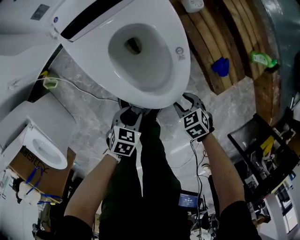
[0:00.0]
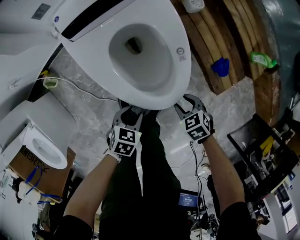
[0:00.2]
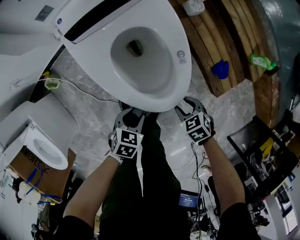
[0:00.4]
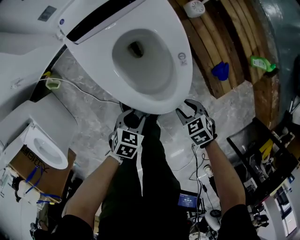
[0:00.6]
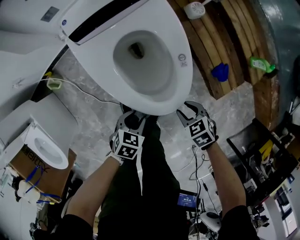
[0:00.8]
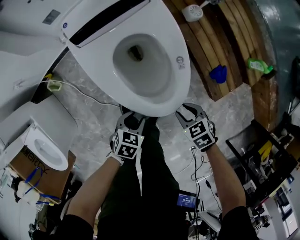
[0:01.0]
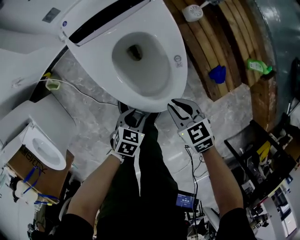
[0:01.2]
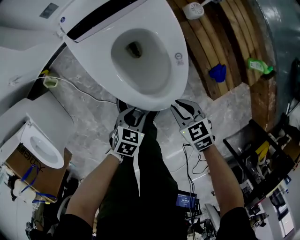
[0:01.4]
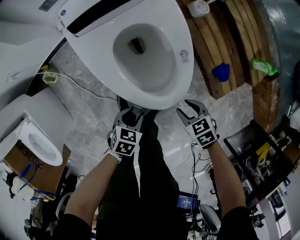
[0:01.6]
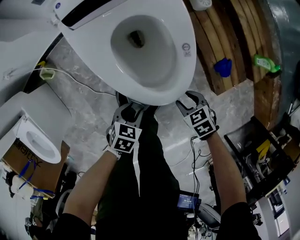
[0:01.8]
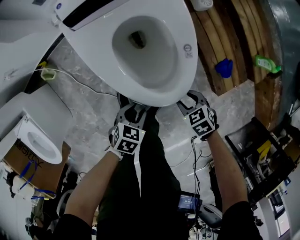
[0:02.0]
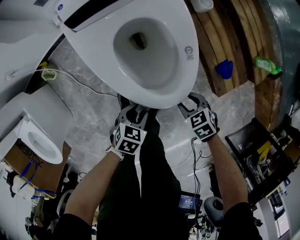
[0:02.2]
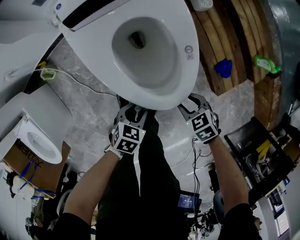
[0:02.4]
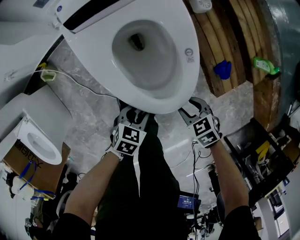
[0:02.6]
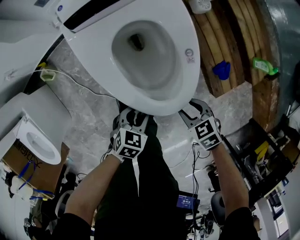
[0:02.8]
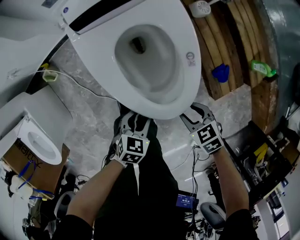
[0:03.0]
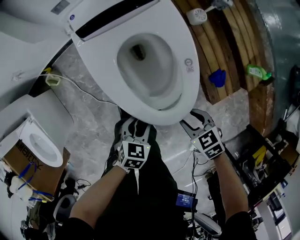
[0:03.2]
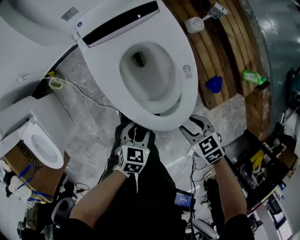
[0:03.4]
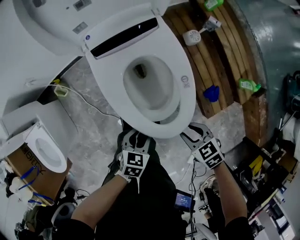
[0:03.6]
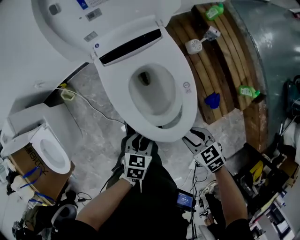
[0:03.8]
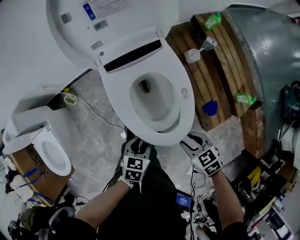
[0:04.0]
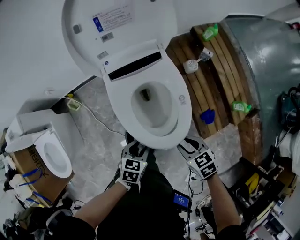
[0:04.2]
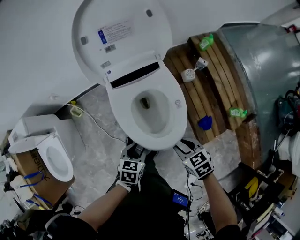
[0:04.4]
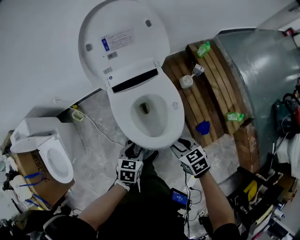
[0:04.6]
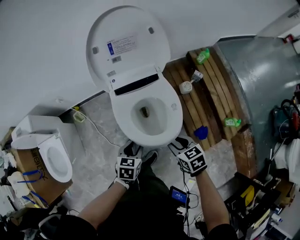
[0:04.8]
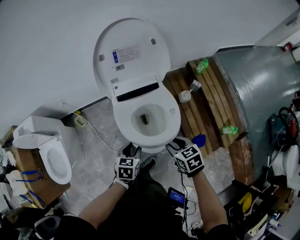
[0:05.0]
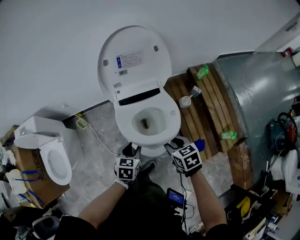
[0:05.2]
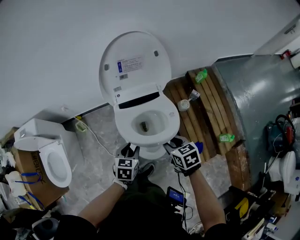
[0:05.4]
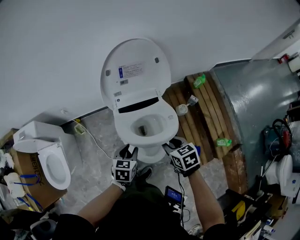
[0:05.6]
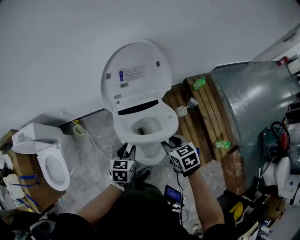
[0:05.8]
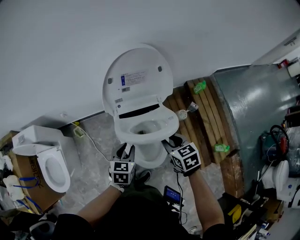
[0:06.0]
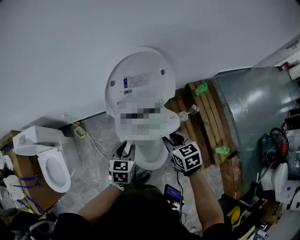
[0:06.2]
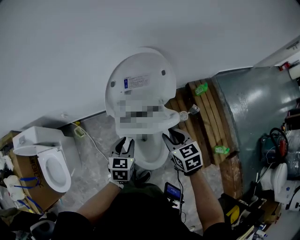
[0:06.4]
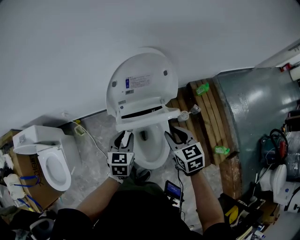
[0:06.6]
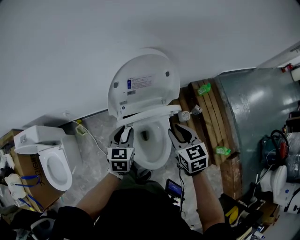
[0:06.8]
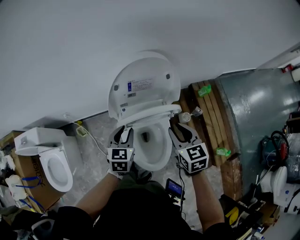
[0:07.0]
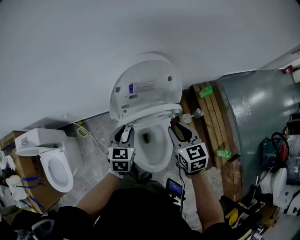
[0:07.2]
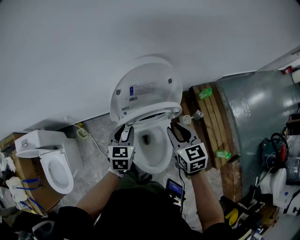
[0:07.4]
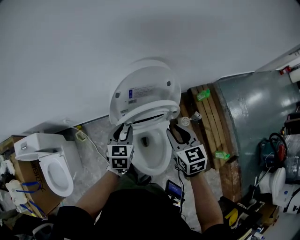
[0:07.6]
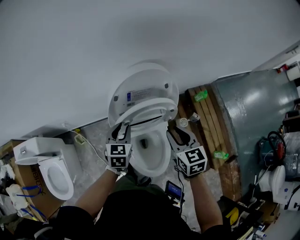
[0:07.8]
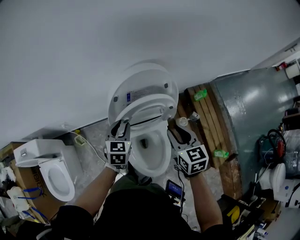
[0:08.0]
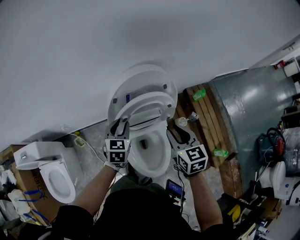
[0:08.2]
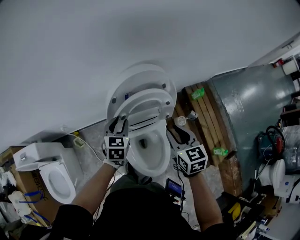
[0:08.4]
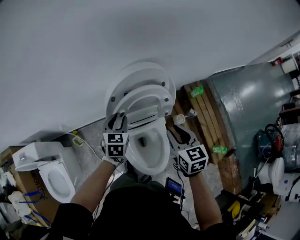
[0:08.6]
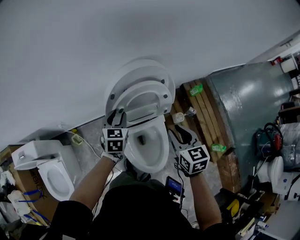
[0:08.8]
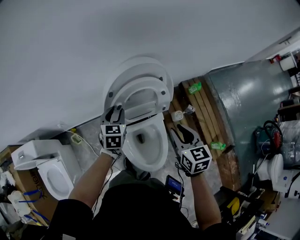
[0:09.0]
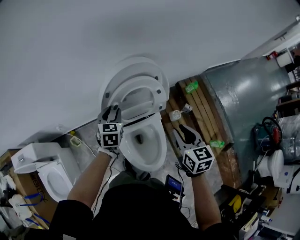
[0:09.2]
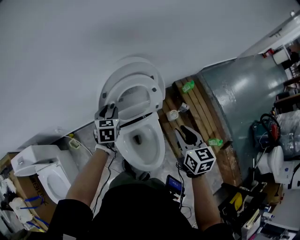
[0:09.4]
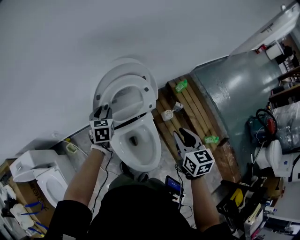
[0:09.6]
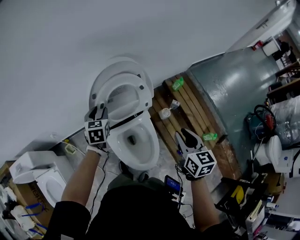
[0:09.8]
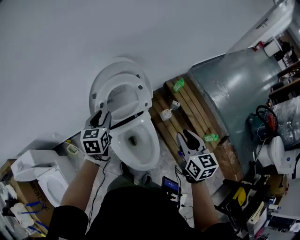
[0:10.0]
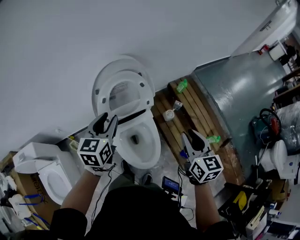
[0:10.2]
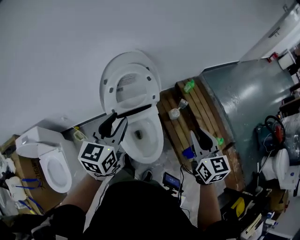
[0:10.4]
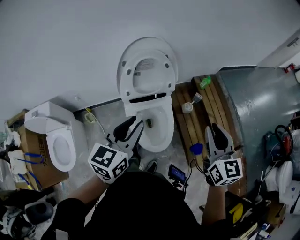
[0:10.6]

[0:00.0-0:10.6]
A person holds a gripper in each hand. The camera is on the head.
0:00.0 to 0:01.6: The right gripper reaches roughly 10 cm upward, then returns, and closes and opens again.
0:01.6 to 0:03.0: The left gripper ends up approximately 5 cm from where it was.
0:03.0 to 0:04.6: Both grippers move upward, about 25 cm. The left gripper changes its angle by about 20 degrees.
0:04.6 to 0:06.0: The grippers both shift forward and upward by approximately 20 cm.
0:06.0 to 0:07.6: The right gripper moves forward and upward, roughly 15 cm. The left gripper is displaced forward by some 15 cm.
0:07.6 to 0:09.0: The left gripper travels forward by roughly 5 cm.
0:09.0 to 0:10.6: Both grippers travel together backward, upward and to the right, roughly 35 cm. The right gripper swivels some 20 degrees; the left gripper changes its angle by approximately 30 degrees.

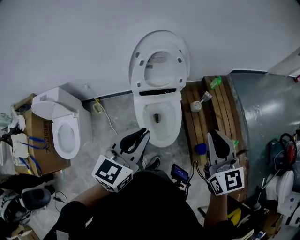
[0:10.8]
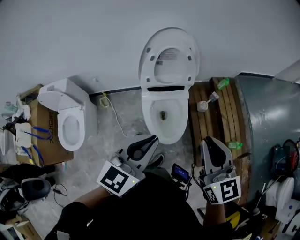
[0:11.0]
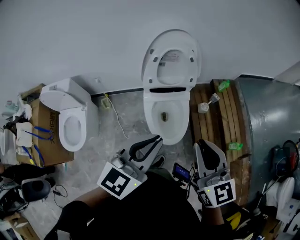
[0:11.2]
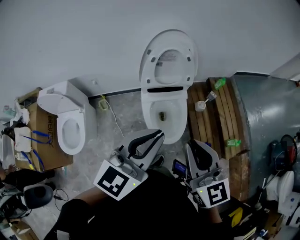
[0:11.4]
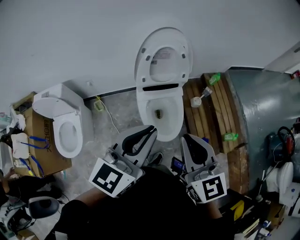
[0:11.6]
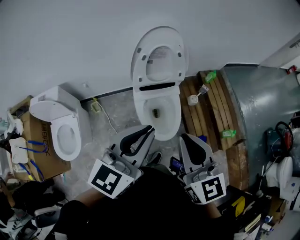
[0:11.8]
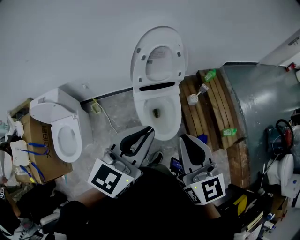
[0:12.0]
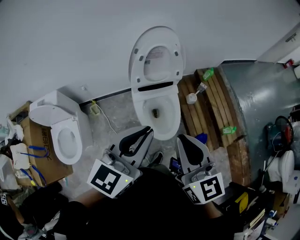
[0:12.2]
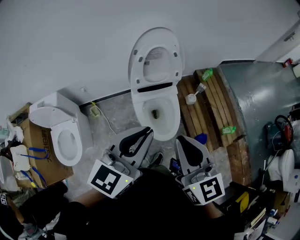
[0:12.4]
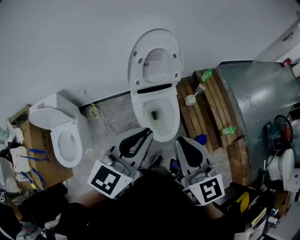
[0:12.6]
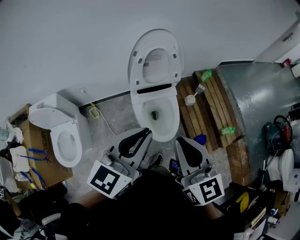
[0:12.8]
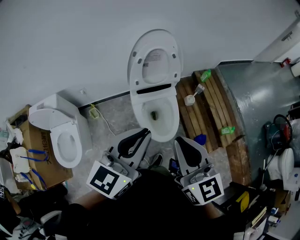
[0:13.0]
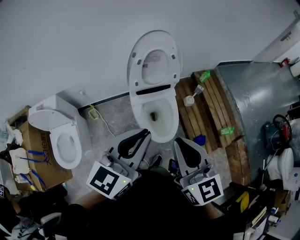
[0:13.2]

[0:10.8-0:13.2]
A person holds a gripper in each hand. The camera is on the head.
0:10.8 to 0:12.0: The left gripper travels upward by some 10 cm; the right gripper moves to the left and backward, about 20 cm.
0:12.0 to 0:13.2: There are only small adjustments of the grippers.

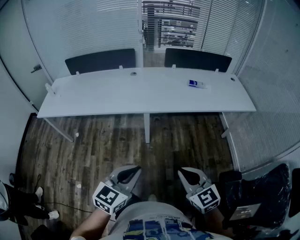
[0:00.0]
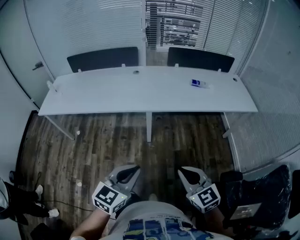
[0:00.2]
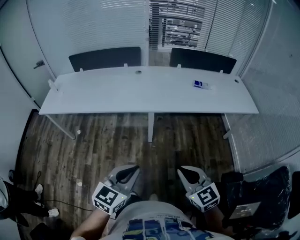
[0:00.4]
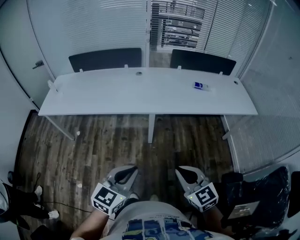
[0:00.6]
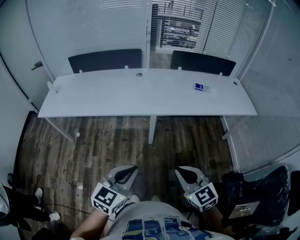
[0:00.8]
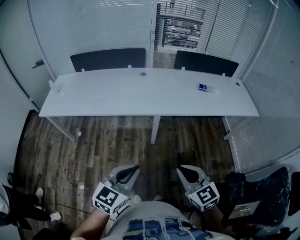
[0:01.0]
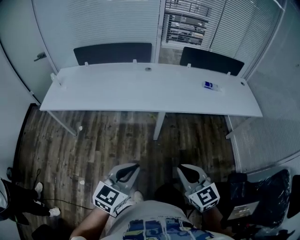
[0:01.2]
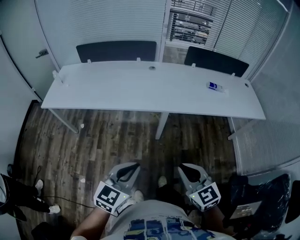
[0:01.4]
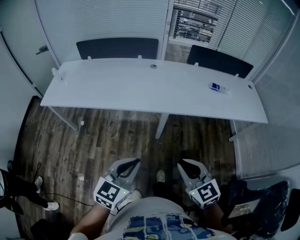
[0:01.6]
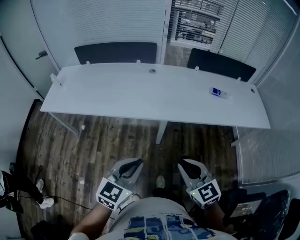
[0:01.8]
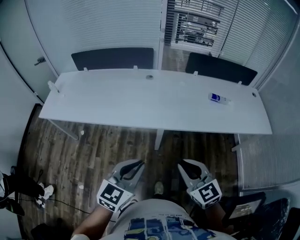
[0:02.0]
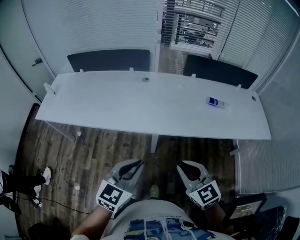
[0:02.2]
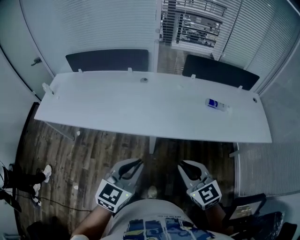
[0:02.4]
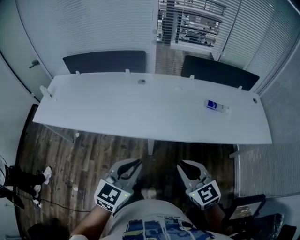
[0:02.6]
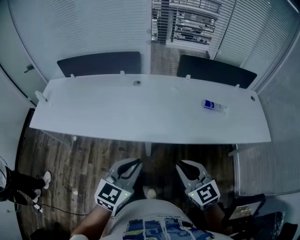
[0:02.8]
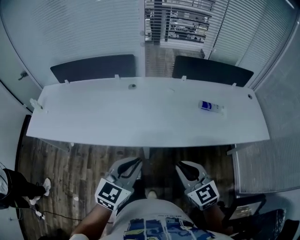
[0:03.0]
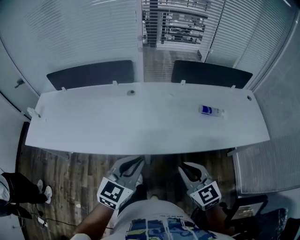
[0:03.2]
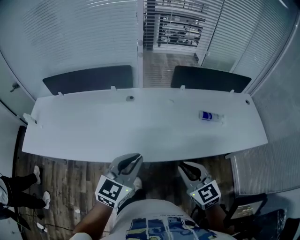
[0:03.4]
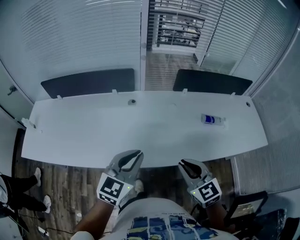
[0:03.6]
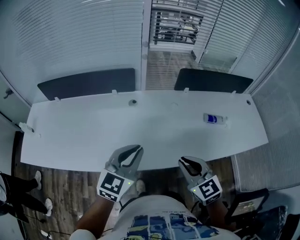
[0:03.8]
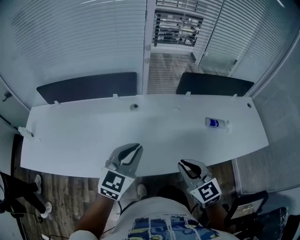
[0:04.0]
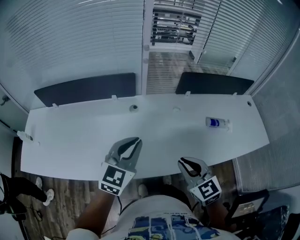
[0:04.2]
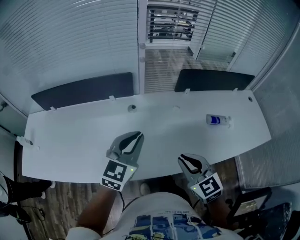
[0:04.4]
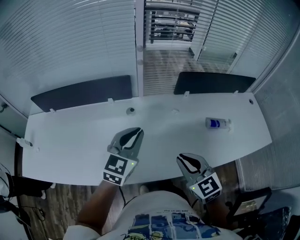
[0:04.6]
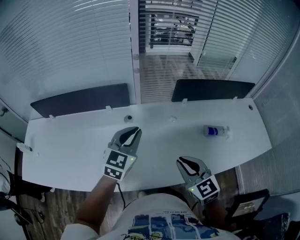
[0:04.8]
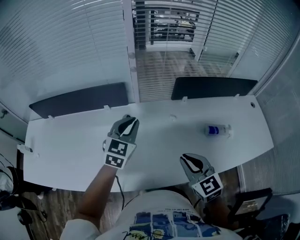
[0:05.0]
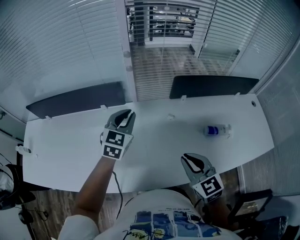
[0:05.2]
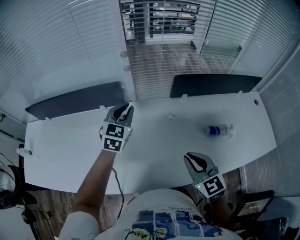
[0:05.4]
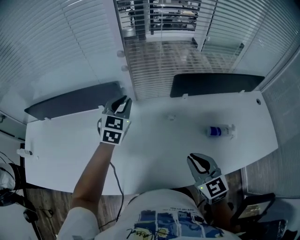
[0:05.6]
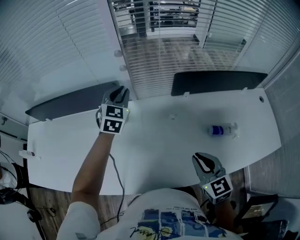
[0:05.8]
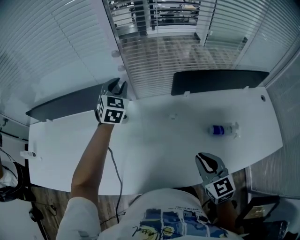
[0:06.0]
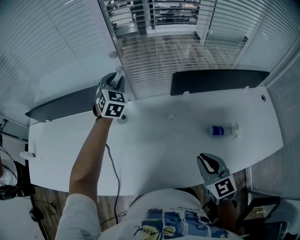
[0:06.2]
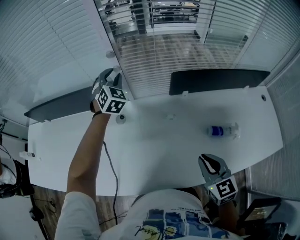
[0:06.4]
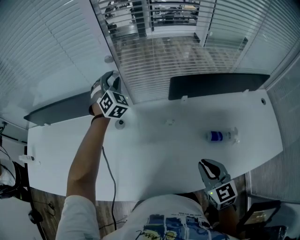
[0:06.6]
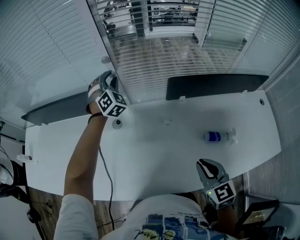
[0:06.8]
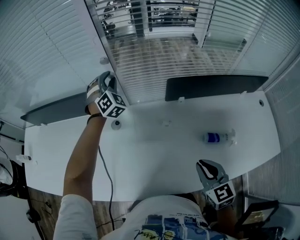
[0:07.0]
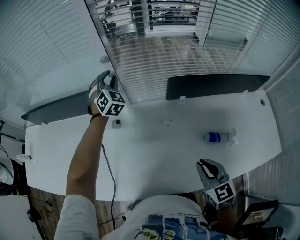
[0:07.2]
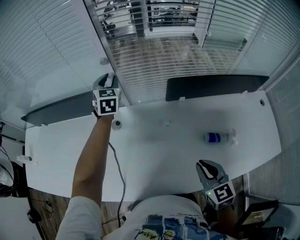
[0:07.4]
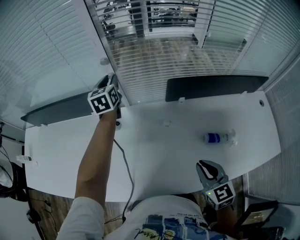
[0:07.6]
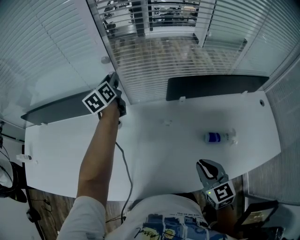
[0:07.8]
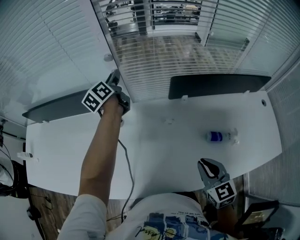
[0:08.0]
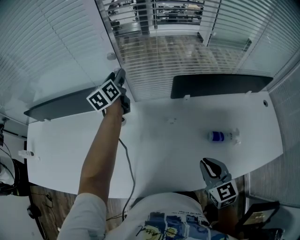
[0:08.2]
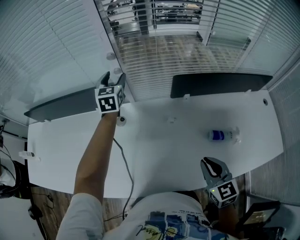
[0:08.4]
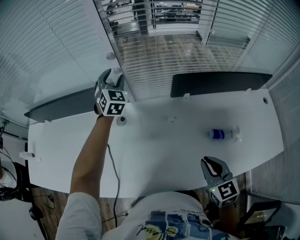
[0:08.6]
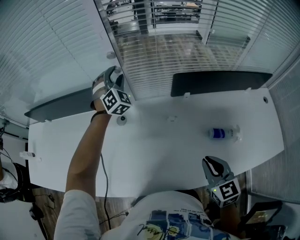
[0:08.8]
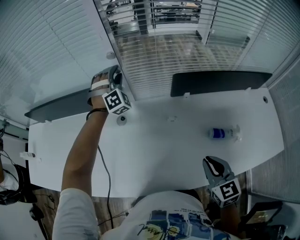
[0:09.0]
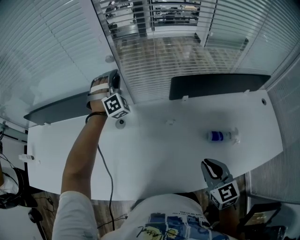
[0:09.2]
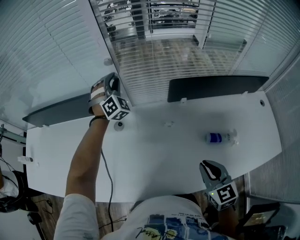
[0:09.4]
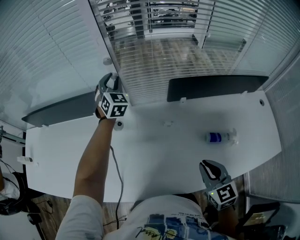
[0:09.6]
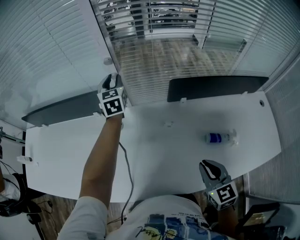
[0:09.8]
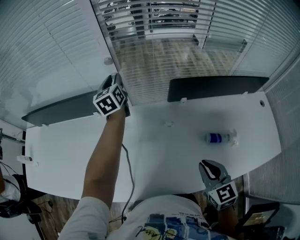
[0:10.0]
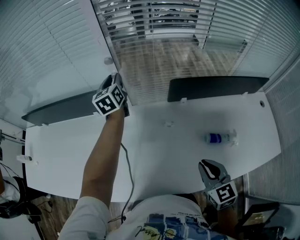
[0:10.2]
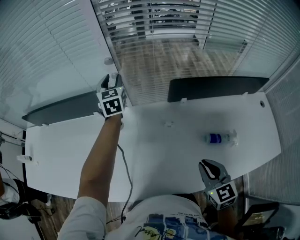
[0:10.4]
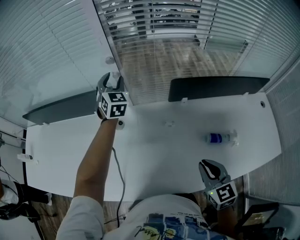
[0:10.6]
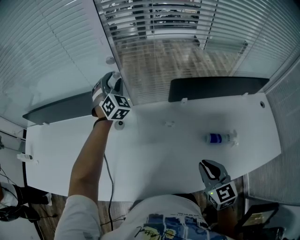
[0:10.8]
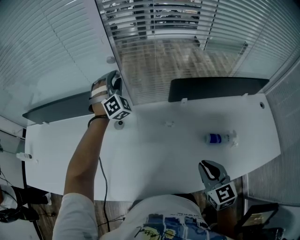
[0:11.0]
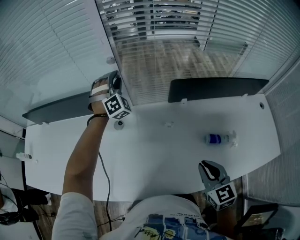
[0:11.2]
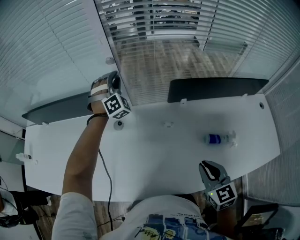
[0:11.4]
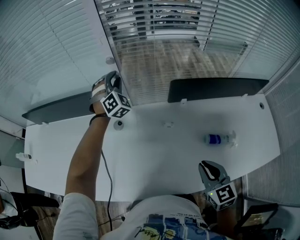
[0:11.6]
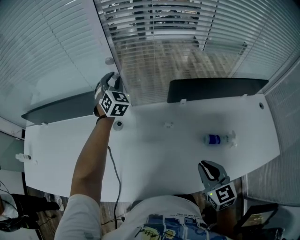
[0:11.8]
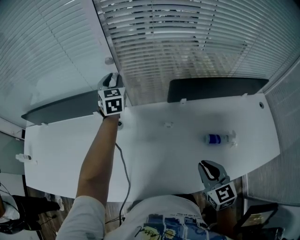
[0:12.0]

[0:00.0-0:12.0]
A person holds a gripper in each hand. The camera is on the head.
0:00.0 to 0:01.6: Both grippers travel together to the left and forward, approximately 15 cm.
0:01.6 to 0:03.0: Both grippers travel together forward and to the right, approximately 30 cm.
0:03.0 to 0:04.4: The left gripper is displaced forward by about 30 cm. Meanwhile the right gripper moves forward and to the left, roughly 25 cm.
0:04.4 to 0:06.0: The right gripper travels to the right and forward by roughly 20 cm. Meanwhile the left gripper moves forward, some 35 cm, and swivels roughly 30 degrees.
0:06.0 to 0:07.6: The left gripper heads forward, covering roughly 5 cm, and rotates about 40 degrees.
0:07.6 to 0:09.0: The left gripper rolls clockwise, seen from behind, by some 80 degrees.
0:09.0 to 0:10.4: The left gripper rotates around the line of its fingers by approximately 70 degrees, counterclockwise from behind.
